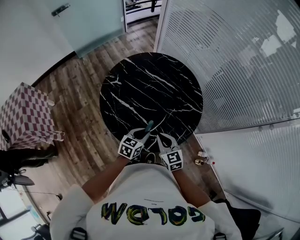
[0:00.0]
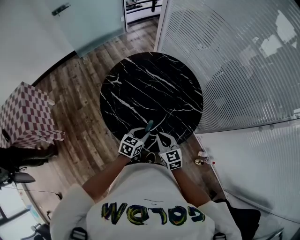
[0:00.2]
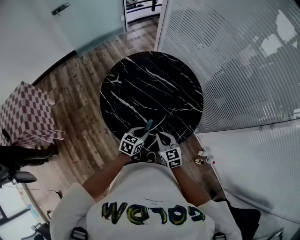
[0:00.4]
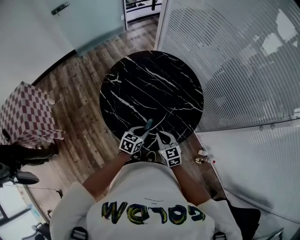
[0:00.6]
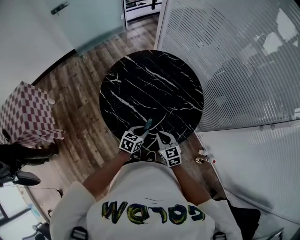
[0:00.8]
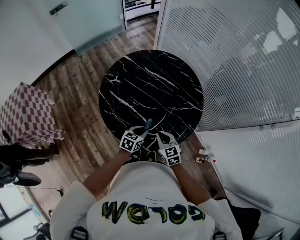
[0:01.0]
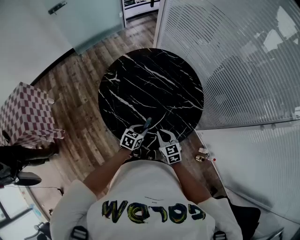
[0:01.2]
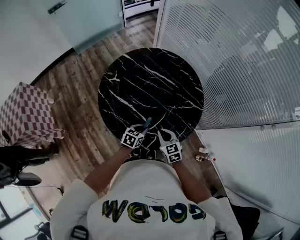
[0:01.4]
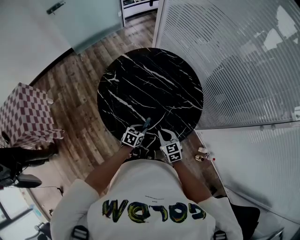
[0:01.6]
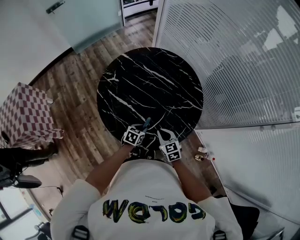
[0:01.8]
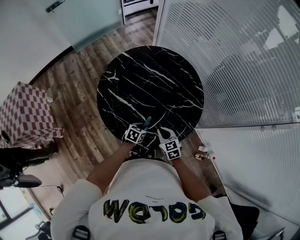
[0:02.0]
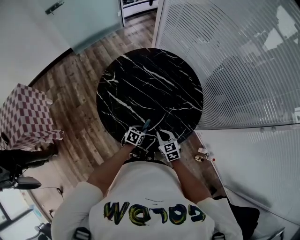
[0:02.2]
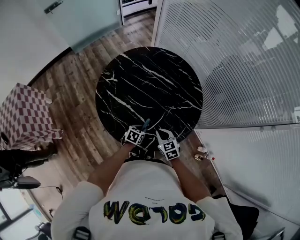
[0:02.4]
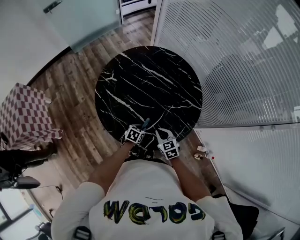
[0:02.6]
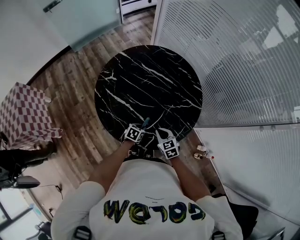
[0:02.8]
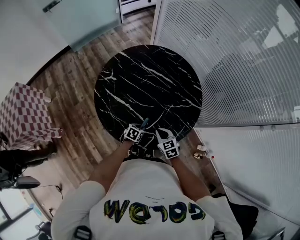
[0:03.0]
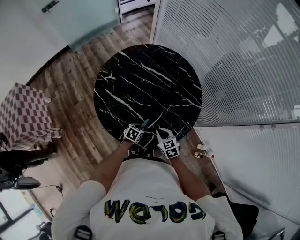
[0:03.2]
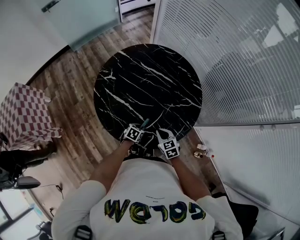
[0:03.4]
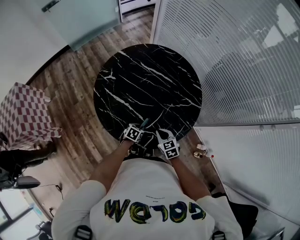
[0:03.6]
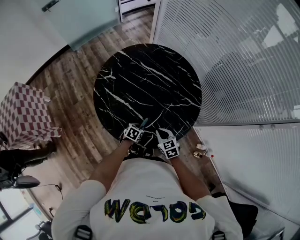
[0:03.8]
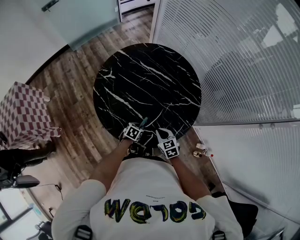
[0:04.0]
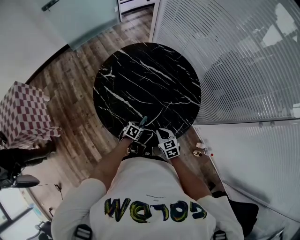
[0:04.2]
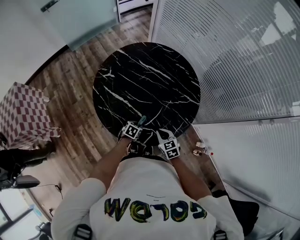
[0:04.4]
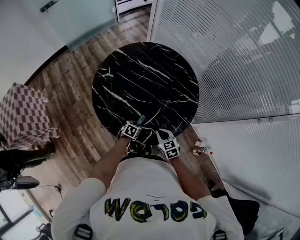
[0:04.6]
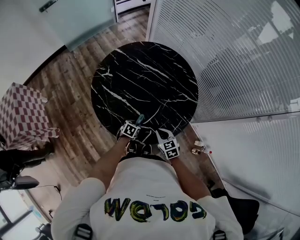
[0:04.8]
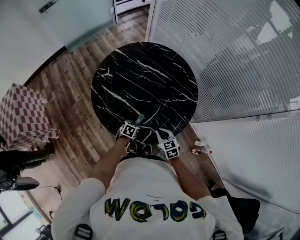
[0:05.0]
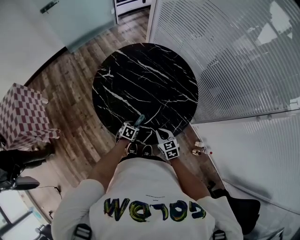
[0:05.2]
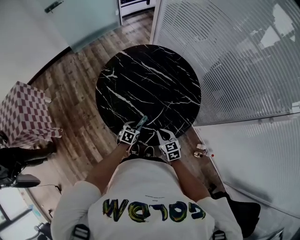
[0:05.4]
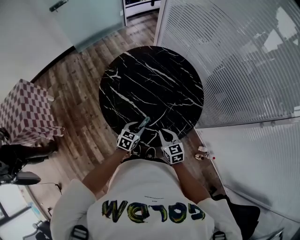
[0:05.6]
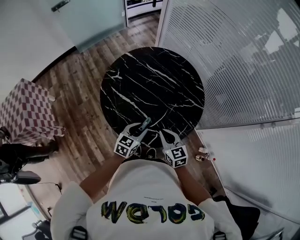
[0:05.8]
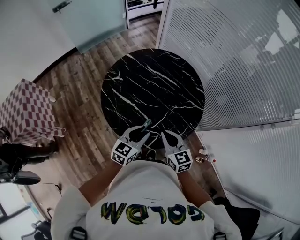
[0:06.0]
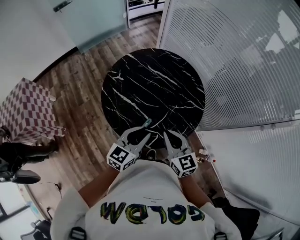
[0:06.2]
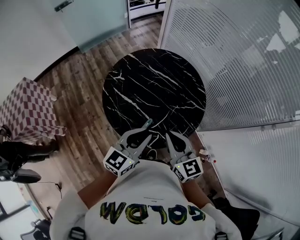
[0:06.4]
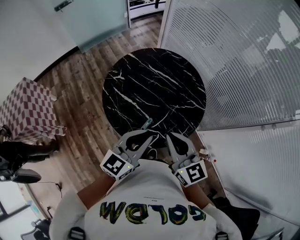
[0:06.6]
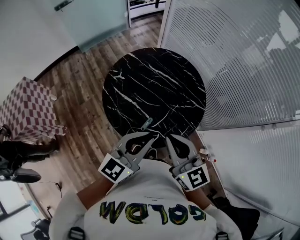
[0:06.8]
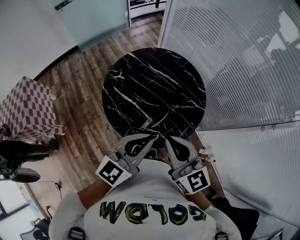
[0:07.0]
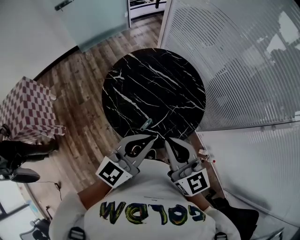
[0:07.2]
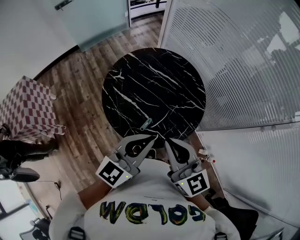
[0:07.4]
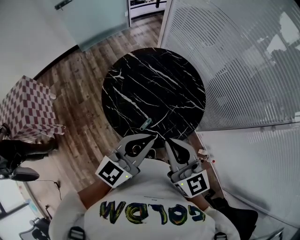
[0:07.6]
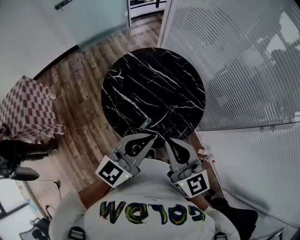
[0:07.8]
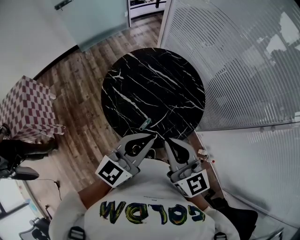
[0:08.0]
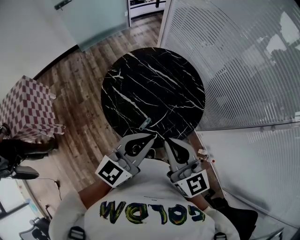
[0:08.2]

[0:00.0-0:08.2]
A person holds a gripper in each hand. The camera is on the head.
0:00.0 to 0:01.6: Both grippers move downward, roughly 10 cm.
0:01.6 to 0:03.2: The right gripper is displaced downward by approximately 5 cm, while the left gripper shifts roughly 10 cm downward.
0:03.2 to 0:05.0: The grippers move only a little.
0:05.0 to 0:06.6: Both grippers move upward, approximately 40 cm. The left gripper points its fingers about 50 degrees further upward, and closes its fingers; the right gripper tilts its fingers some 30 degrees upward.
0:06.6 to 0:08.2: Both grippers move upward, some 5 cm.

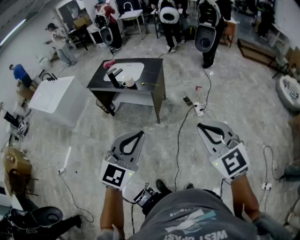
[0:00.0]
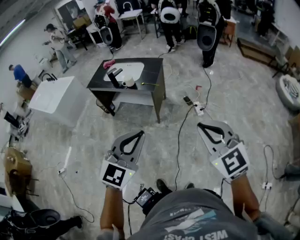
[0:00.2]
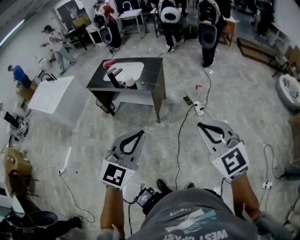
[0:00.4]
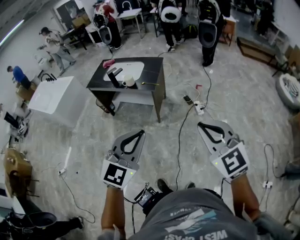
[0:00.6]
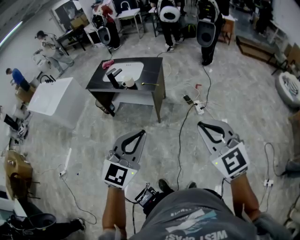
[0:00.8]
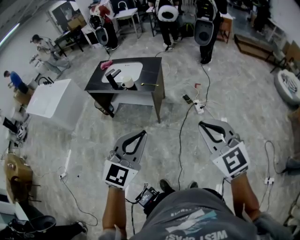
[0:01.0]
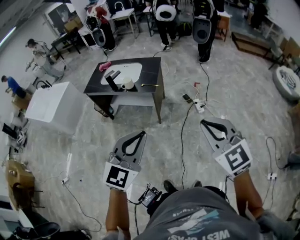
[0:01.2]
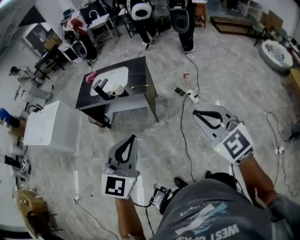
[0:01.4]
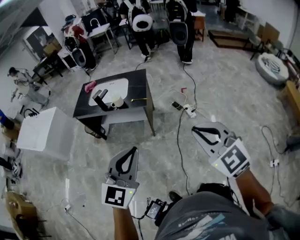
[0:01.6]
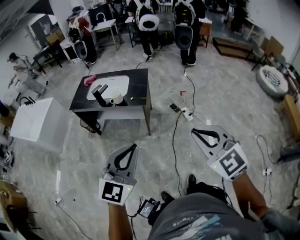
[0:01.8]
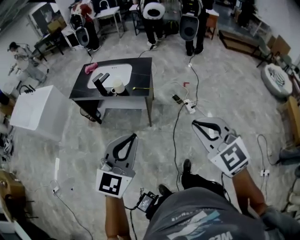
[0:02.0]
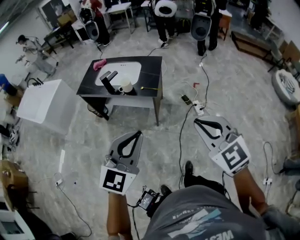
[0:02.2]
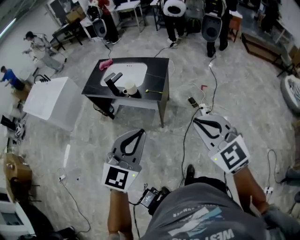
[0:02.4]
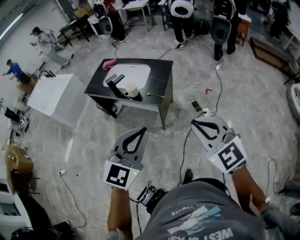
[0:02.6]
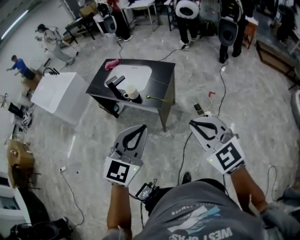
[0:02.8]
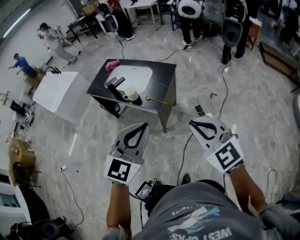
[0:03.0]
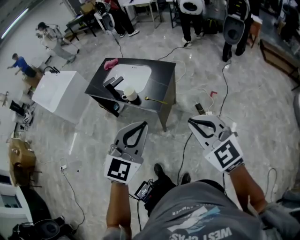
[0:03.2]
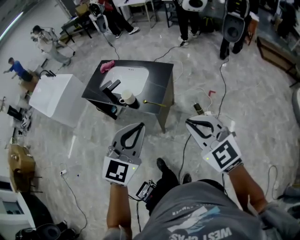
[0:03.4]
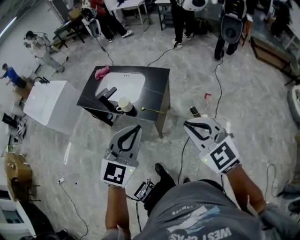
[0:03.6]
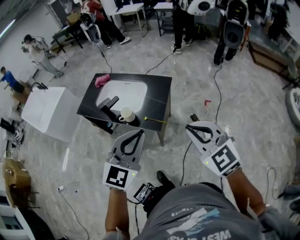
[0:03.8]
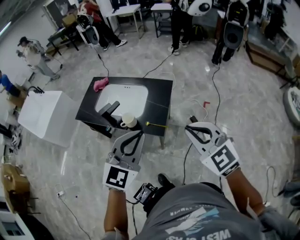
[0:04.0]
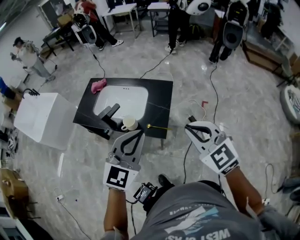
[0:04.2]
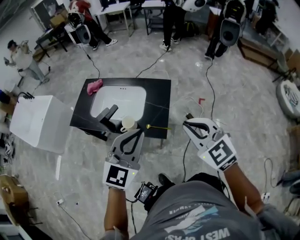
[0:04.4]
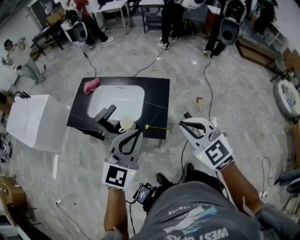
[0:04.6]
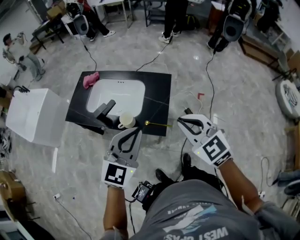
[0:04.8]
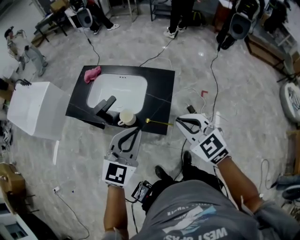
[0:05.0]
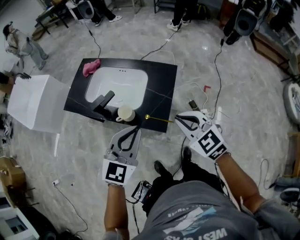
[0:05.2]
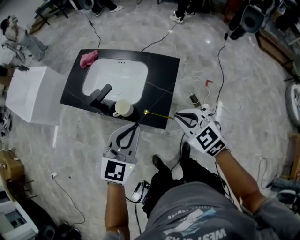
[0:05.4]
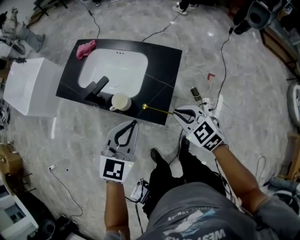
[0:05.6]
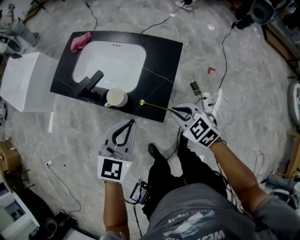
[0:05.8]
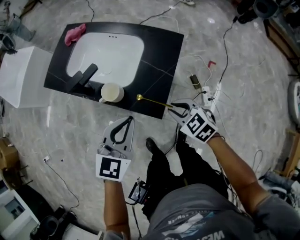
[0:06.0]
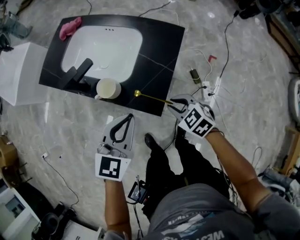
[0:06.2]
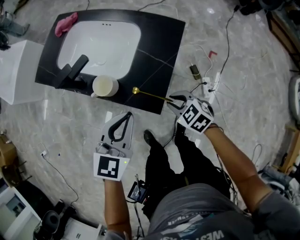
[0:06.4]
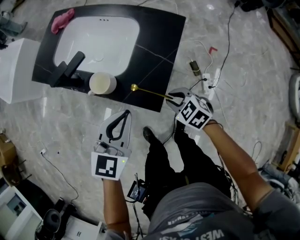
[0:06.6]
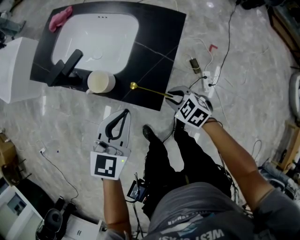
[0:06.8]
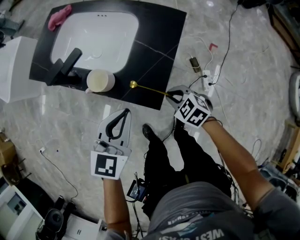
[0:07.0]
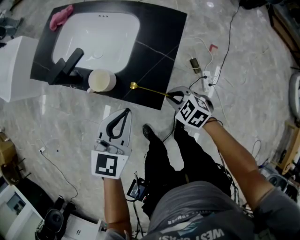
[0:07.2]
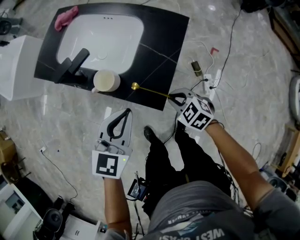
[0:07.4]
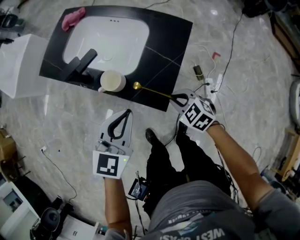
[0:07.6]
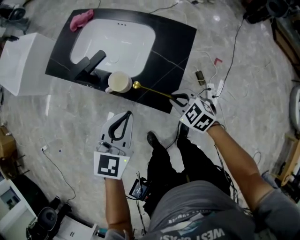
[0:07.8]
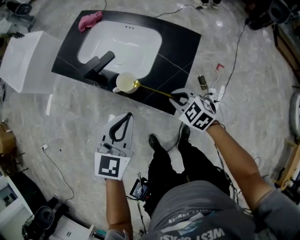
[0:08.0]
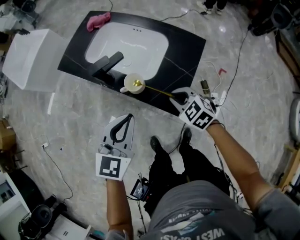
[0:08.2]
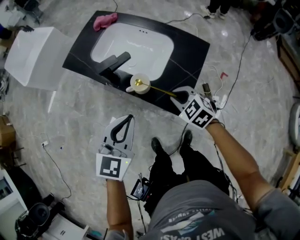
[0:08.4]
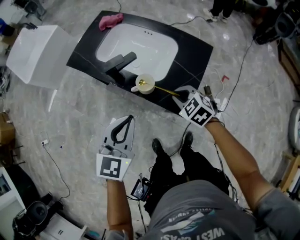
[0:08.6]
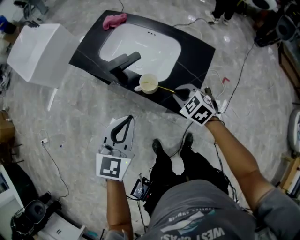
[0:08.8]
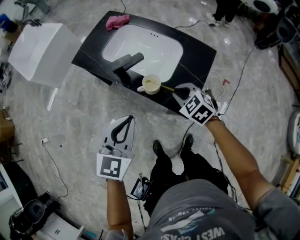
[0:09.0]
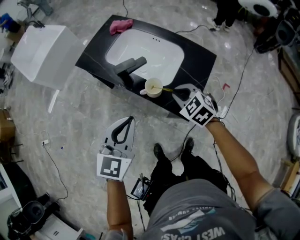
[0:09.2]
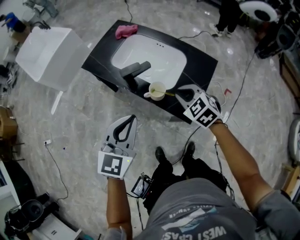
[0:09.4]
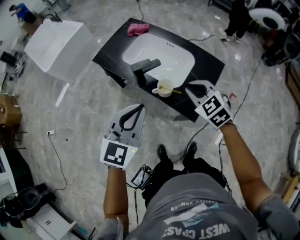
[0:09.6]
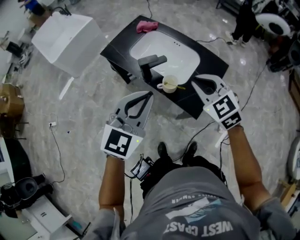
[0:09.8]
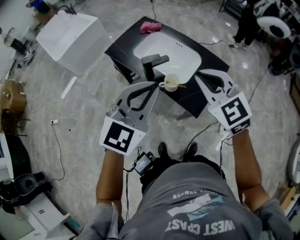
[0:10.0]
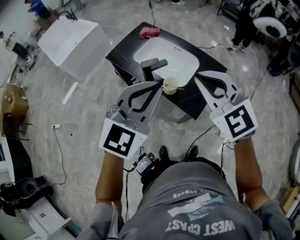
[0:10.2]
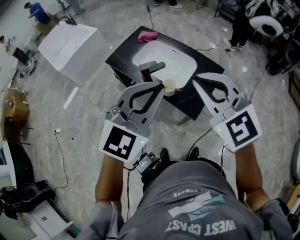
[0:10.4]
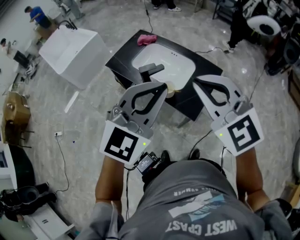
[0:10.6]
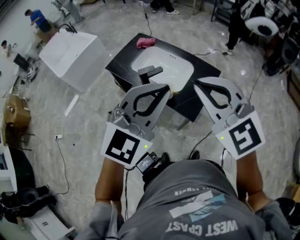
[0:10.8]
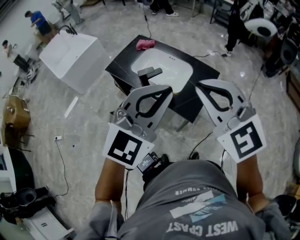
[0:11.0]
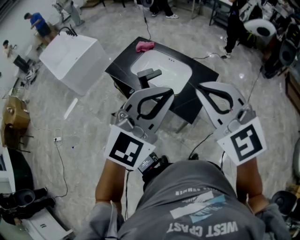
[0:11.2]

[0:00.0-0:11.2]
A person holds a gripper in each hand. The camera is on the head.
0:00.0 to 0:01.6: The two grippers go about 10 cm to the left and forward.
0:01.6 to 0:03.2: The left gripper shifts about 25 cm forward and to the right; the right gripper shifts about 25 cm forward, and swivels roughly 20 degrees.
0:03.2 to 0:04.8: The grippers both shift forward and to the left by approximately 25 cm.
0:04.8 to 0:06.4: The left gripper heads downward, covering about 20 cm, and rotates about 20 degrees; the right gripper travels downward by approximately 35 cm, and turns by roughly 40 degrees.
0:06.4 to 0:08.0: The left gripper travels to the left by some 5 cm. The right gripper travels upward and to the left by some 10 cm.
0:08.0 to 0:09.6: The grippers both shift upward and to the left by approximately 15 cm.
0:09.6 to 0:11.2: The right gripper travels upward and backward by about 30 cm, and changes its angle by some 30 degrees, while the left gripper travels upward, to the right and backward by approximately 20 cm, and turns by roughly 30 degrees.

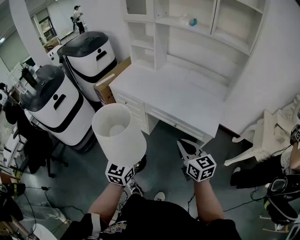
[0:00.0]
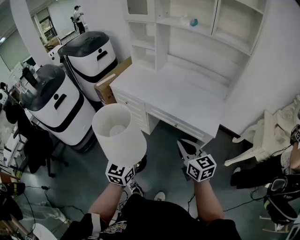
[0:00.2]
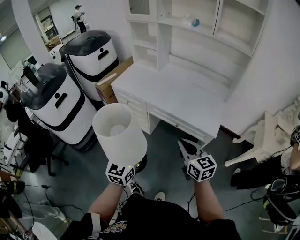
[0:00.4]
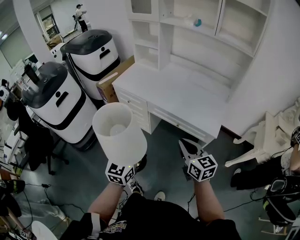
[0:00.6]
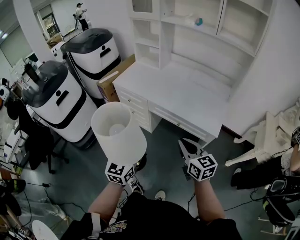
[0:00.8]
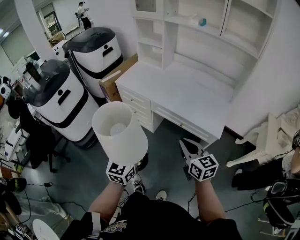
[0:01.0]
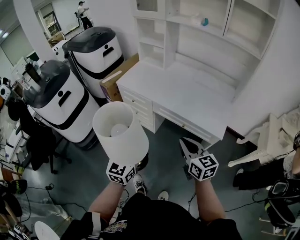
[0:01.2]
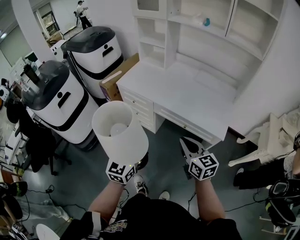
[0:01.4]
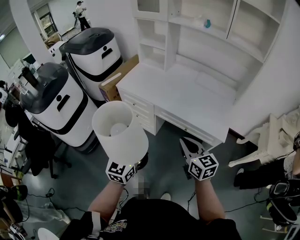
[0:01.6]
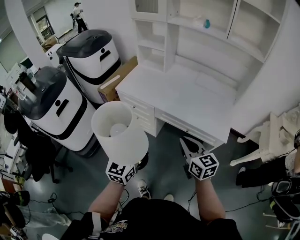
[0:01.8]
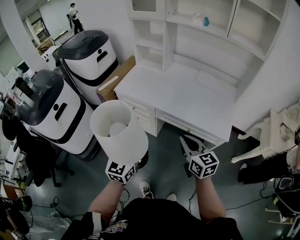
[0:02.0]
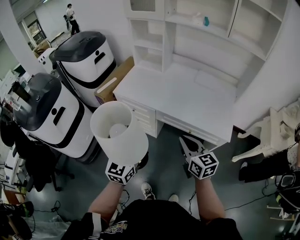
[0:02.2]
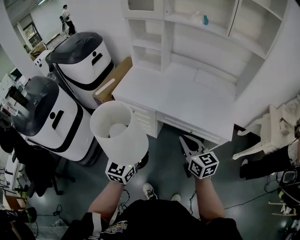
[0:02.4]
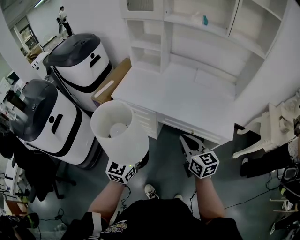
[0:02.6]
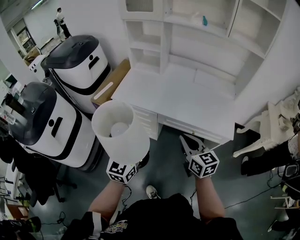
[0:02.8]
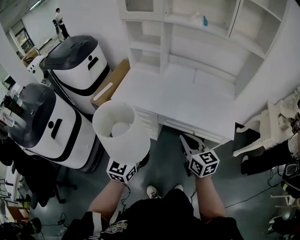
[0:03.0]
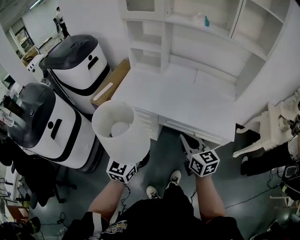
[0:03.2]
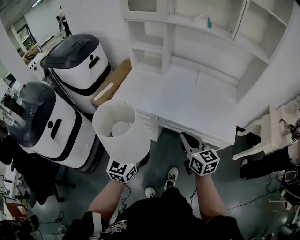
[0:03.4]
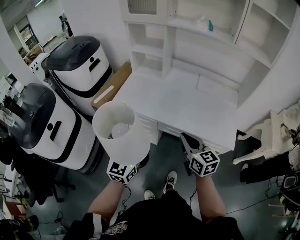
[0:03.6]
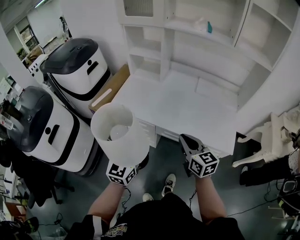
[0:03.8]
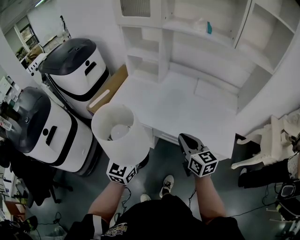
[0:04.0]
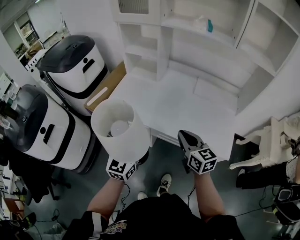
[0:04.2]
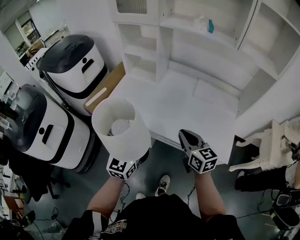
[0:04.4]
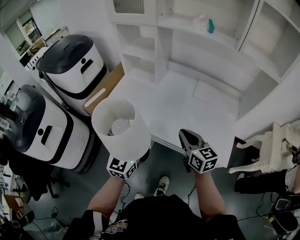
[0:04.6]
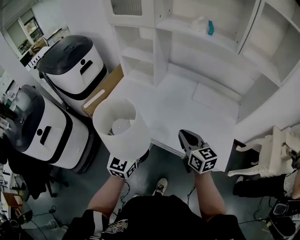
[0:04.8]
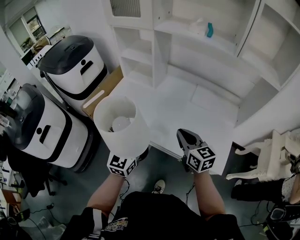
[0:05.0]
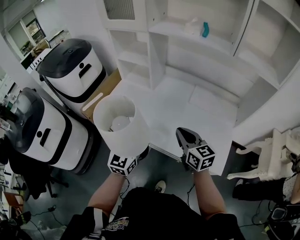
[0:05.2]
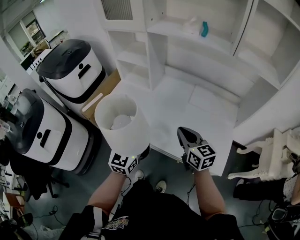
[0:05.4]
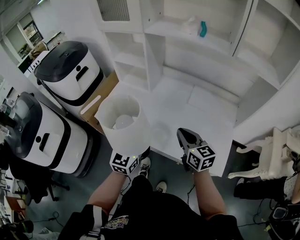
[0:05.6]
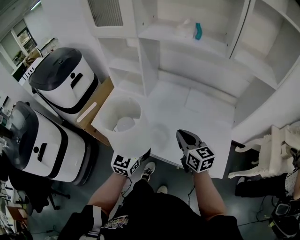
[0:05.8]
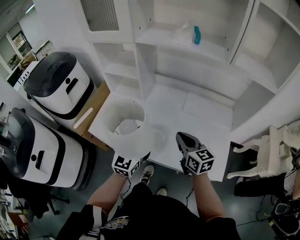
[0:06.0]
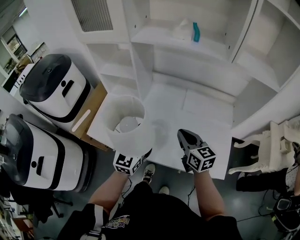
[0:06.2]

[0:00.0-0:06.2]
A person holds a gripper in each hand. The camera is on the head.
0:00.0 to 0:01.6: Both grippers move to the left and forward, about 10 cm.
0:01.6 to 0:03.2: The two grippers go roughly 15 cm forward and to the left.
0:03.2 to 0:04.6: Both grippers move forward and to the right, approximately 20 cm.
0:04.6 to 0:06.2: Both grippers move forward and to the right, approximately 15 cm.
